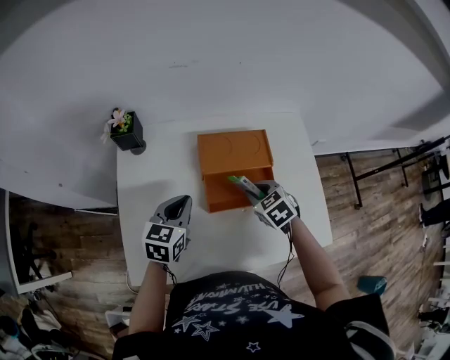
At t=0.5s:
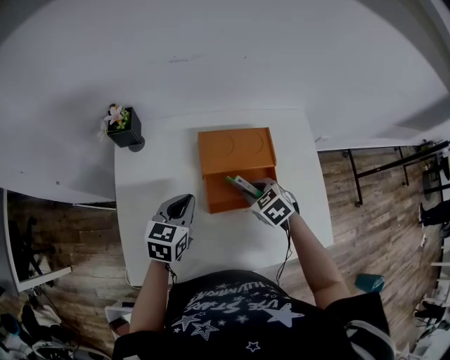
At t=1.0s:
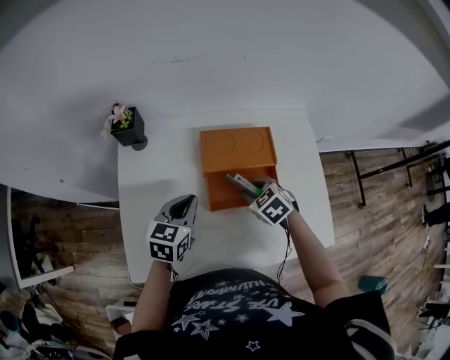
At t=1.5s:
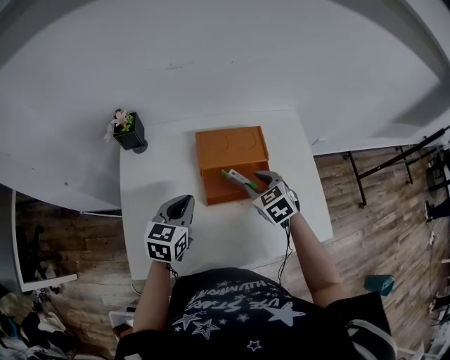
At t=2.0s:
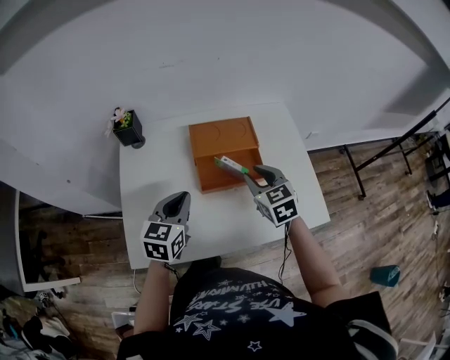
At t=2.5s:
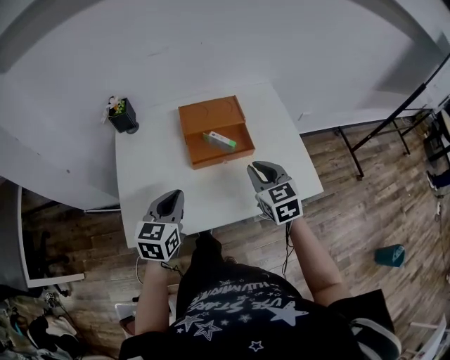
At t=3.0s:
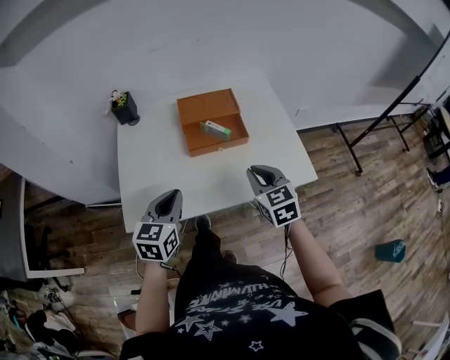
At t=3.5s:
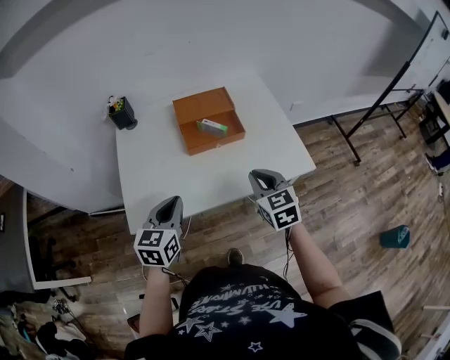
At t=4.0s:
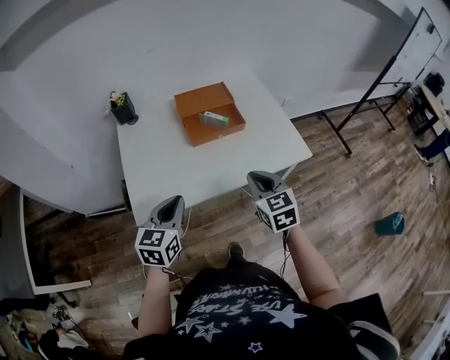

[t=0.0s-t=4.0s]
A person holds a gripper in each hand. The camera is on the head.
t=0.0s to t=2.0s: The right gripper heads upward and backward, covering some 10 cm, and changes its angle by some 30 degrees. The left gripper goes roughly 10 cm backward.
t=2.0s to t=4.0s: Both grippers move backward, approximately 25 cm. The right gripper closes up.

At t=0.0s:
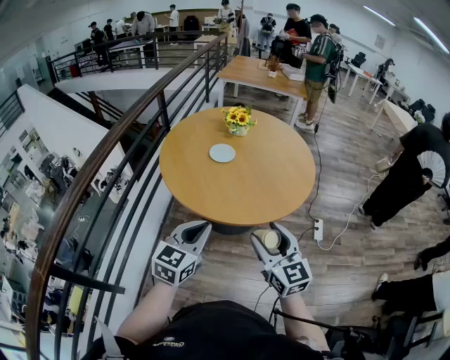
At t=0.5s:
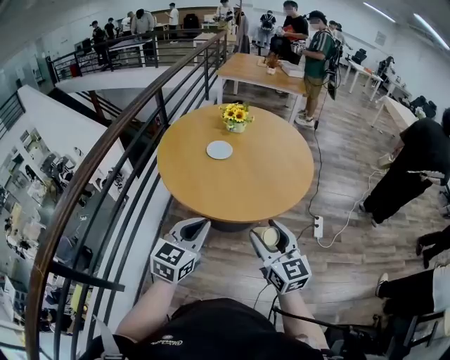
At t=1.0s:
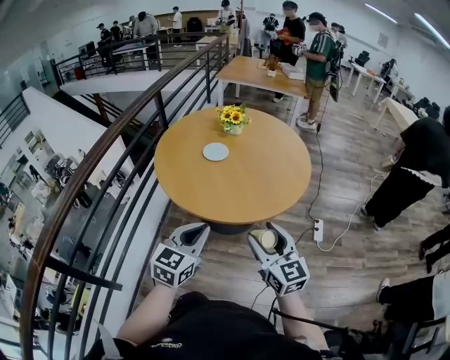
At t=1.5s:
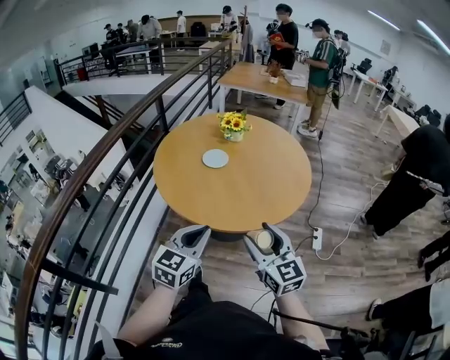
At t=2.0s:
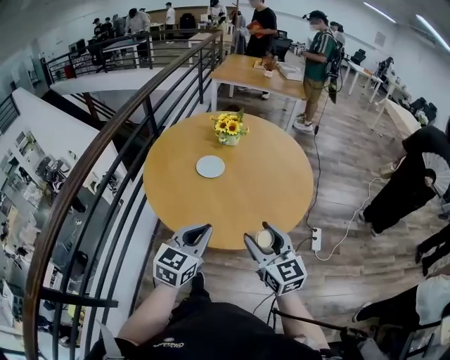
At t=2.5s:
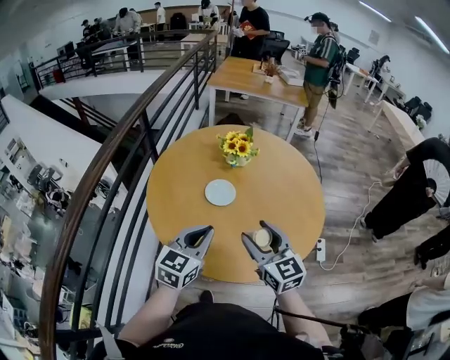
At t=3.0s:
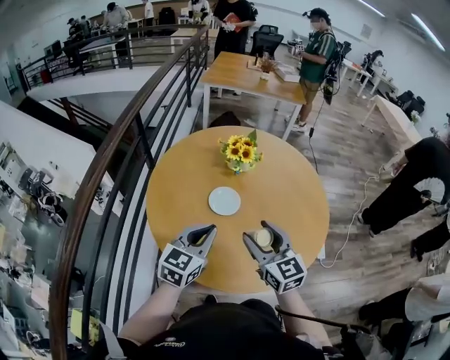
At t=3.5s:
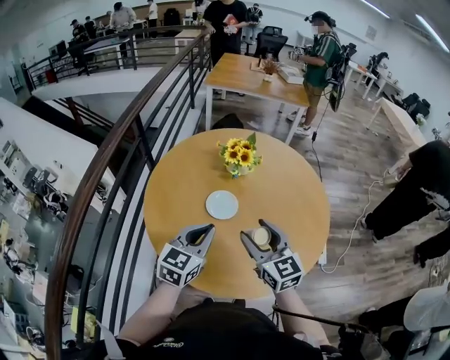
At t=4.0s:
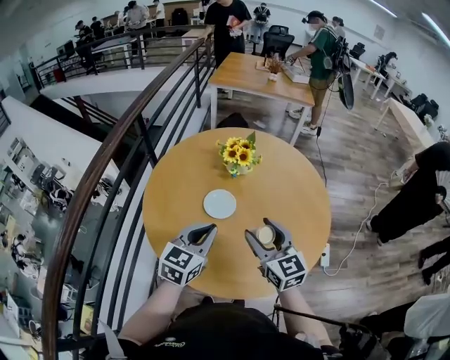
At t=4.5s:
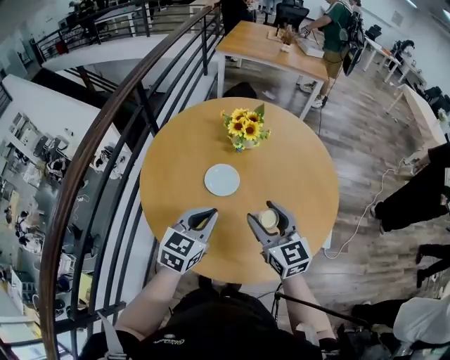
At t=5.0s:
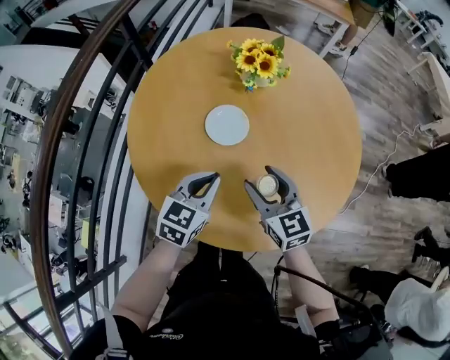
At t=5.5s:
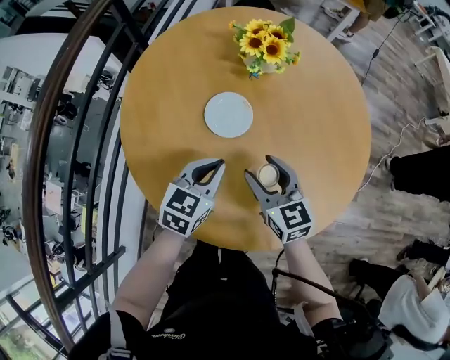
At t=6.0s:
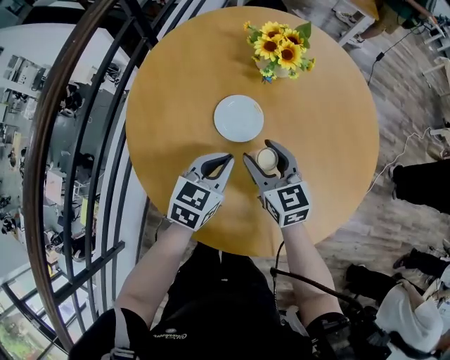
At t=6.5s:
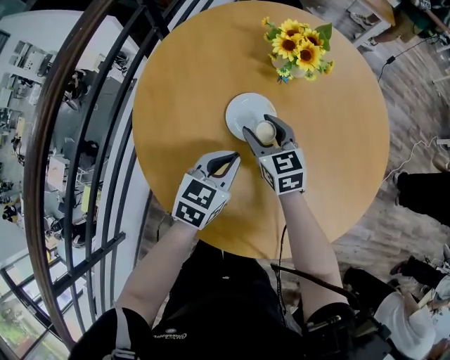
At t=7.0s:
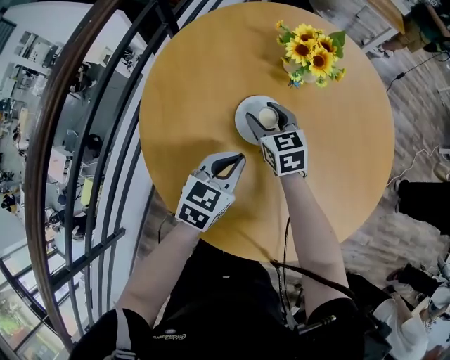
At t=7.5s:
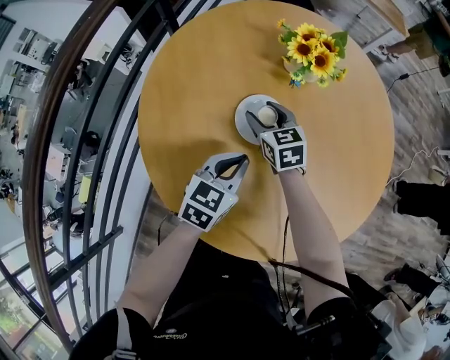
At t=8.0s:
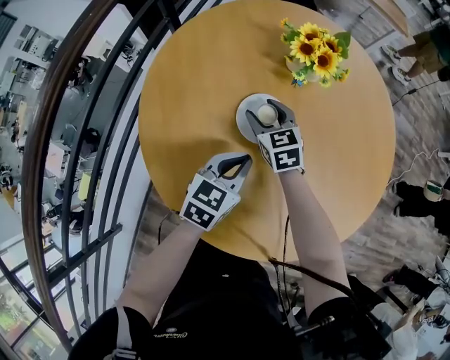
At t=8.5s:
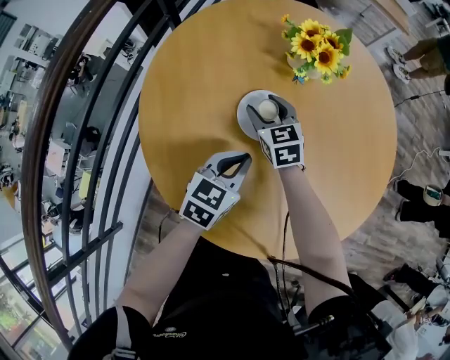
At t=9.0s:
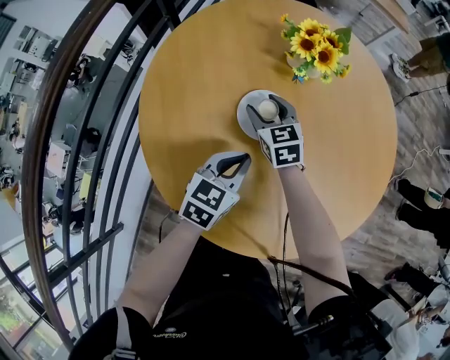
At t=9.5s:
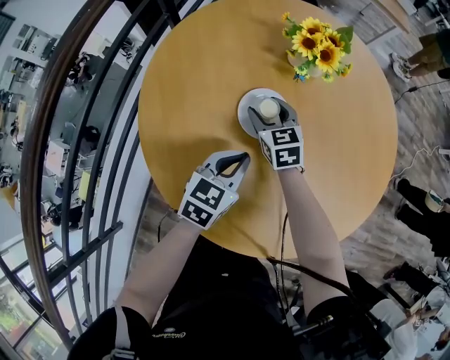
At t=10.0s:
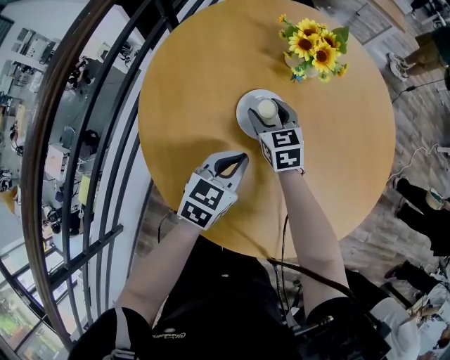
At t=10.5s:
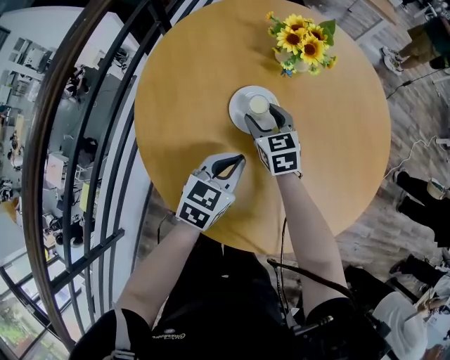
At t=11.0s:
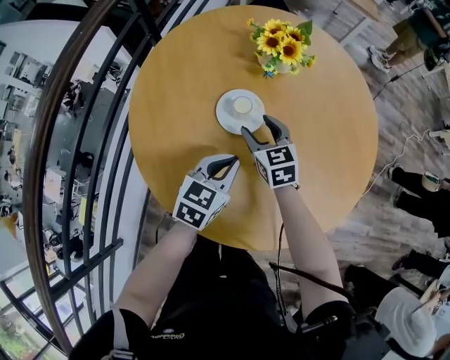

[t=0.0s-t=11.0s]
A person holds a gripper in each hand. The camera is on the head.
t=0.0s to t=2.0s: The right gripper is displaced forward by about 15 cm. The left gripper travels forward and to the right by about 15 cm.
t=2.0s to t=3.5s: The two grippers go roughly 25 cm forward and to the left.
t=3.5s to t=5.5s: The left gripper travels downward by roughly 15 cm; the right gripper moves downward and forward, roughly 20 cm.
t=5.5s to t=7.5s: The left gripper changes place by about 5 cm; the right gripper heads forward, to the left and downward, covering some 20 cm.
t=7.5s to t=9.0s: The grippers stay close to where they were, moving slightly.
t=9.0s to t=11.0s: The right gripper shifts approximately 10 cm backward and to the right.

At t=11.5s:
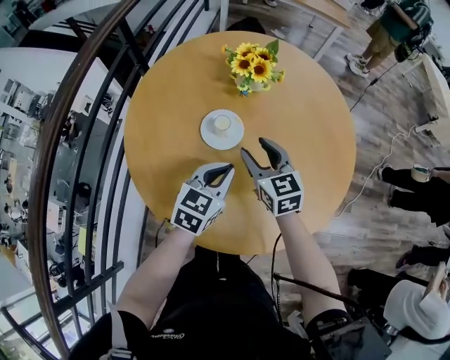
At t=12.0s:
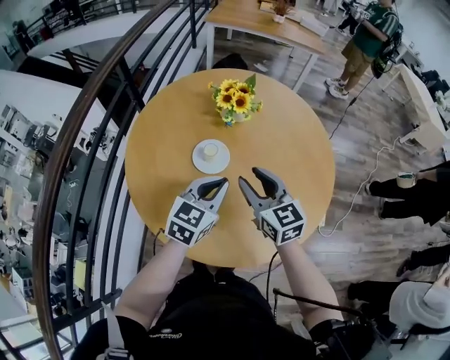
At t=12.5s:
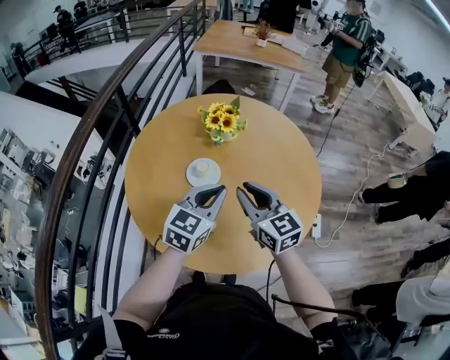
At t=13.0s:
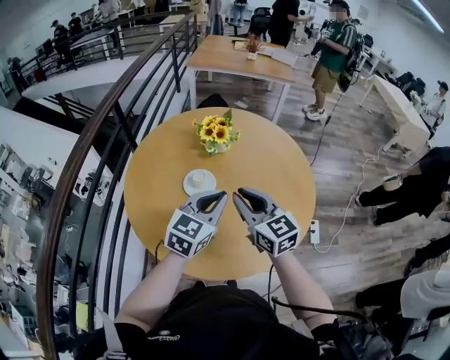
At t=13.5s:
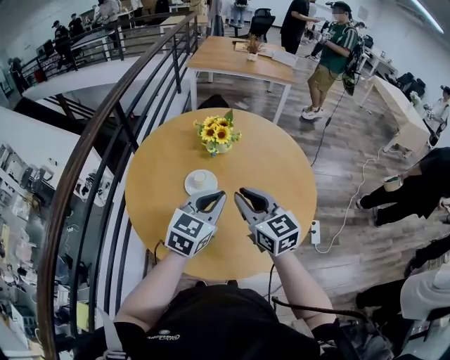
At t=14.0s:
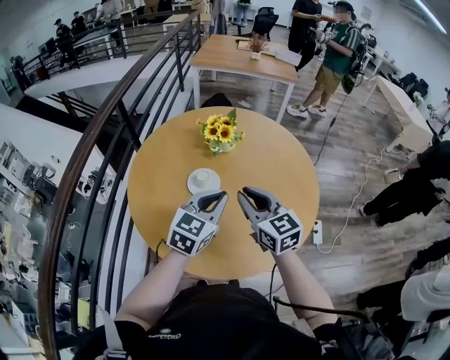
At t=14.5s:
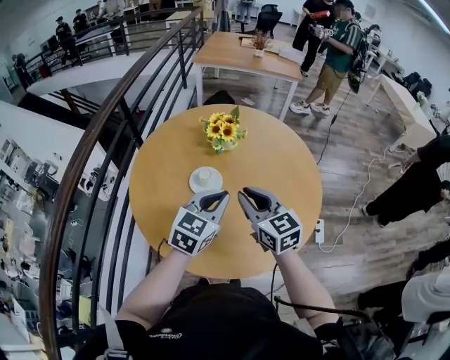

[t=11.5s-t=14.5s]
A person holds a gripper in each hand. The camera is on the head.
t=11.5s to t=13.0s: The left gripper is displaced upward by some 15 cm, while the right gripper shifts some 20 cm upward and backward, and closes up.
t=13.0s to t=14.5s: The grippers move only a little.

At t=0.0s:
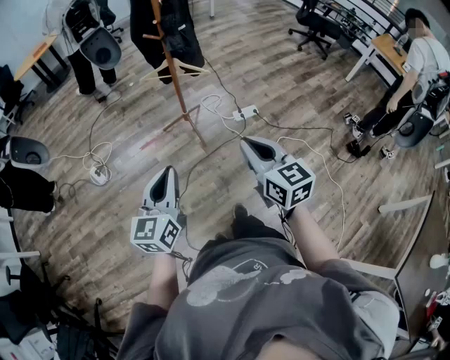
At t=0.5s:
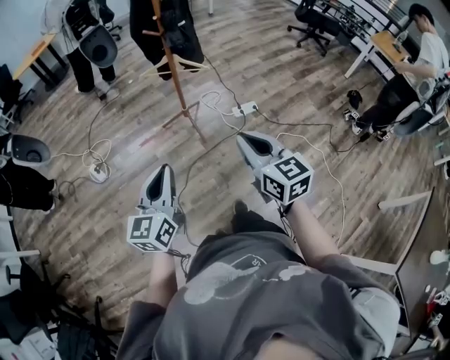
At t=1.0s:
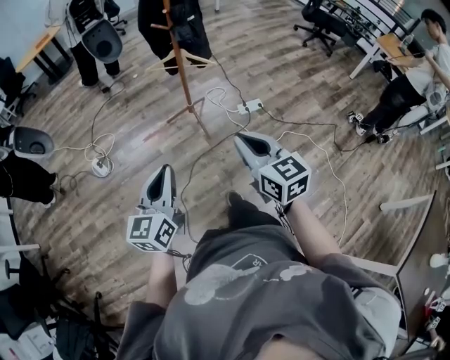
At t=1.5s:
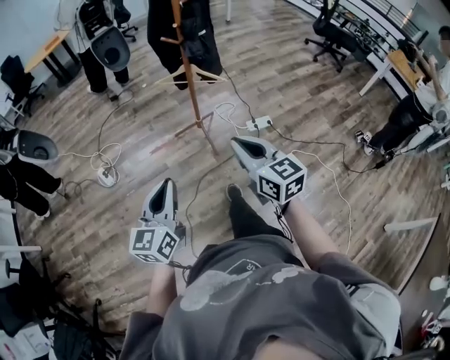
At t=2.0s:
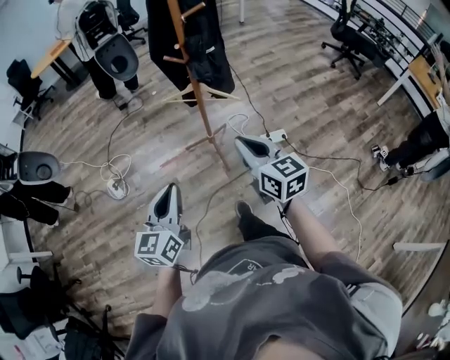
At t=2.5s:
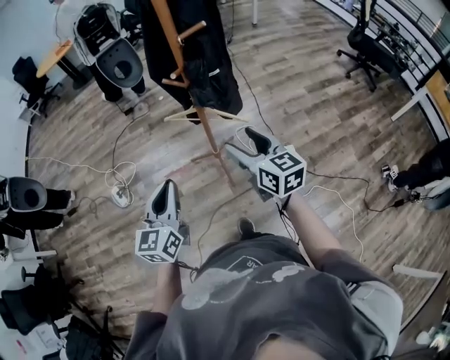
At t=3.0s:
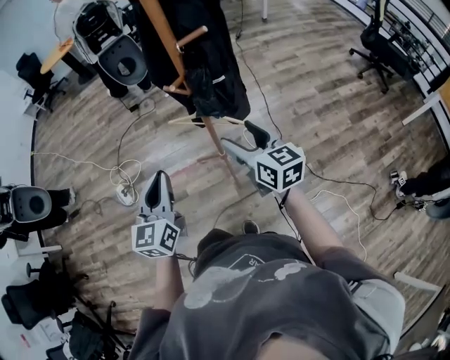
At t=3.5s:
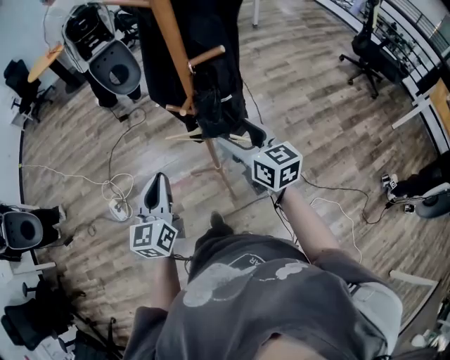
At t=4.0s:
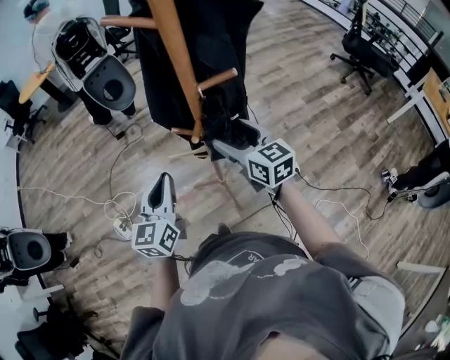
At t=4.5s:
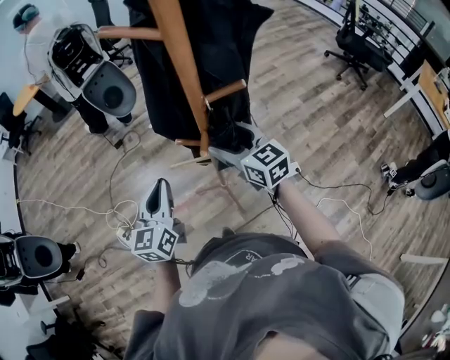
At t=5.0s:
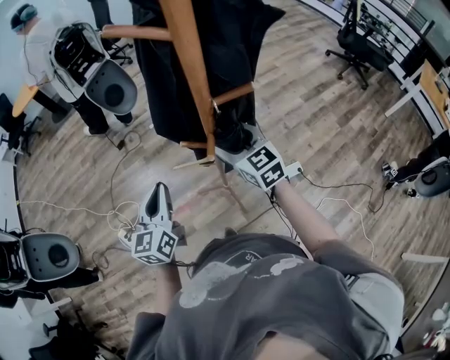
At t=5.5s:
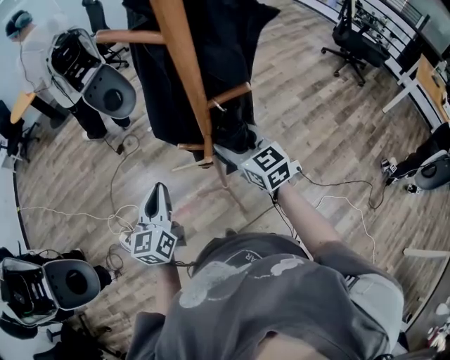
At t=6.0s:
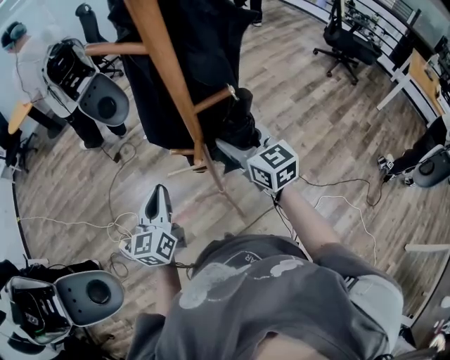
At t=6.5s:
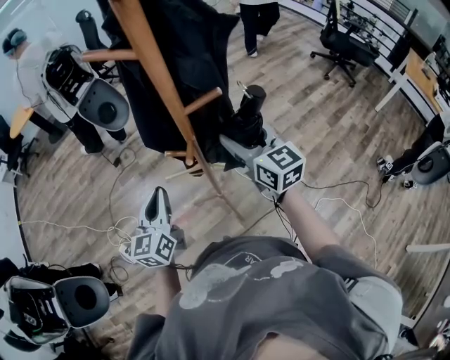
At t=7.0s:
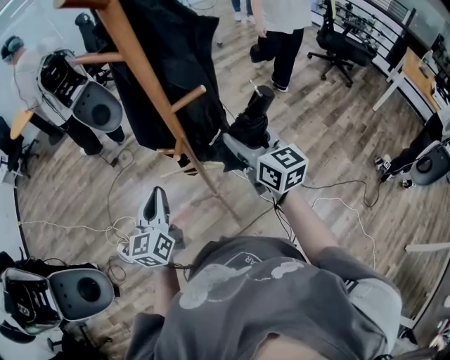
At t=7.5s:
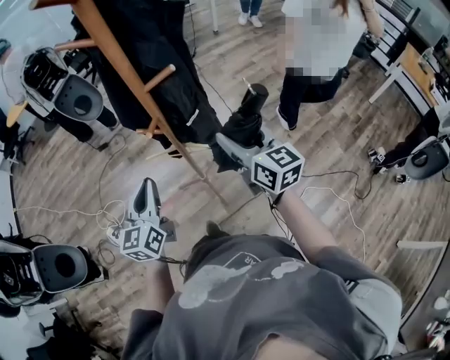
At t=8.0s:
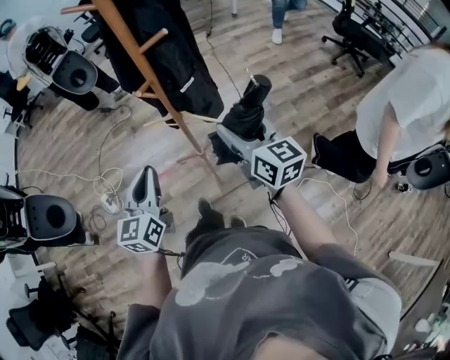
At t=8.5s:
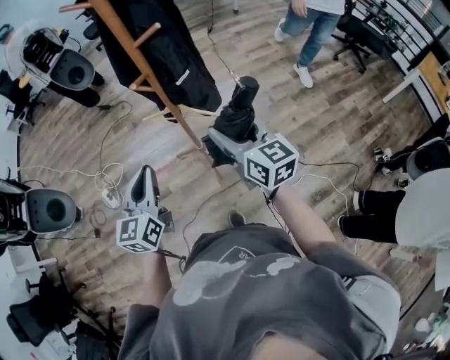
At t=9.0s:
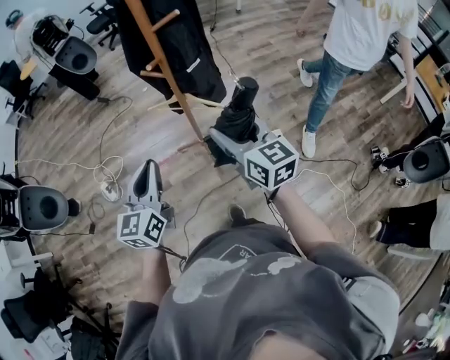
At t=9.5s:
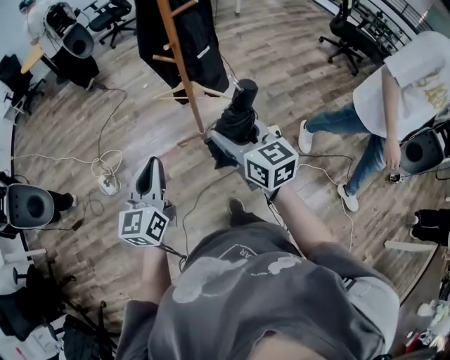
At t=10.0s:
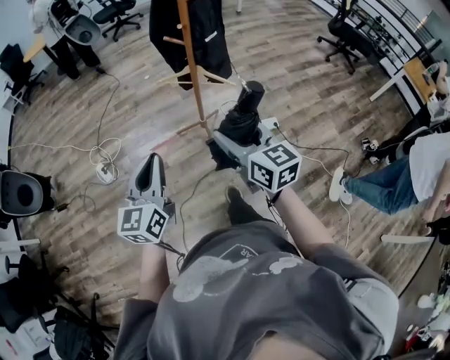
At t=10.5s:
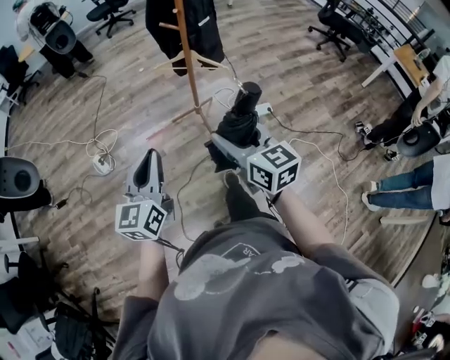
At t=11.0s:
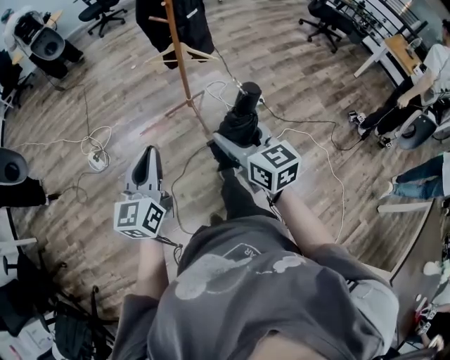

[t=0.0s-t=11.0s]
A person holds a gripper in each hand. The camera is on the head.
t=0.0s to t=2.0s: Both grippers move forward, roughly 25 cm.
t=2.0s to t=3.5s: The two grippers go about 30 cm forward. The right gripper opens up.
t=3.5s to t=5.5s: The grippers both shift forward by about 15 cm.
t=5.5s to t=7.5s: The left gripper heads to the right and backward, covering roughly 15 cm, while the right gripper shifts some 20 cm to the right, backward and upward.
t=7.5s to t=9.0s: Both grippers travel together backward, about 15 cm.
t=9.0s to t=11.0s: Both grippers travel together backward, roughly 30 cm.
